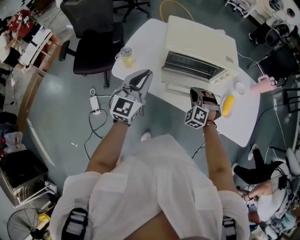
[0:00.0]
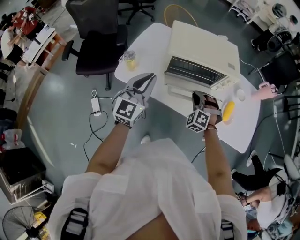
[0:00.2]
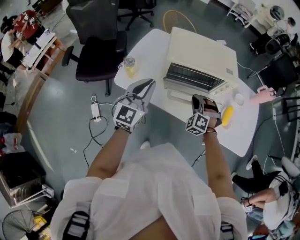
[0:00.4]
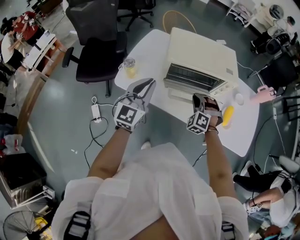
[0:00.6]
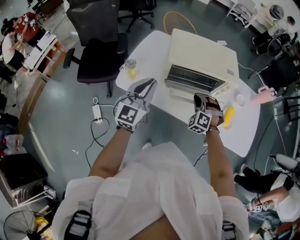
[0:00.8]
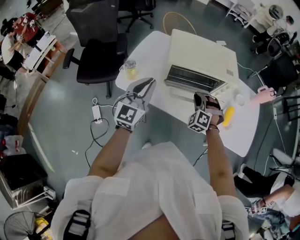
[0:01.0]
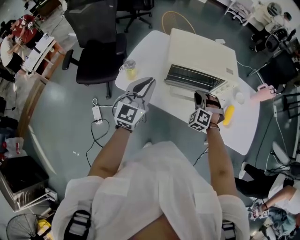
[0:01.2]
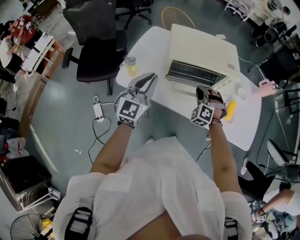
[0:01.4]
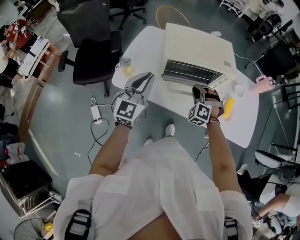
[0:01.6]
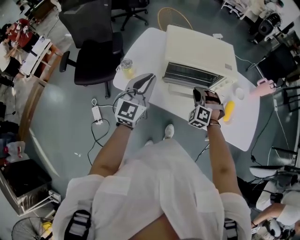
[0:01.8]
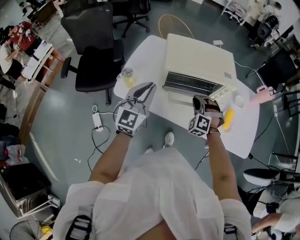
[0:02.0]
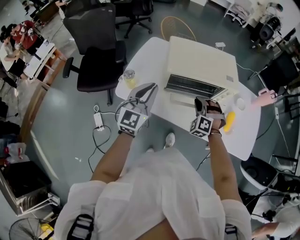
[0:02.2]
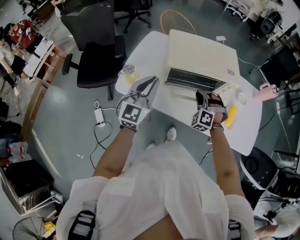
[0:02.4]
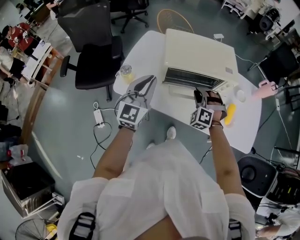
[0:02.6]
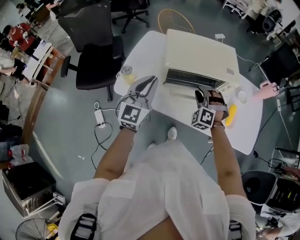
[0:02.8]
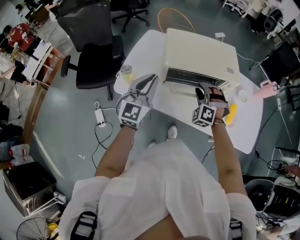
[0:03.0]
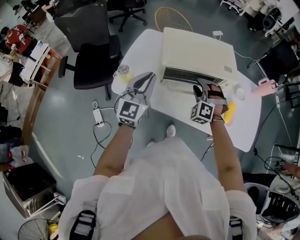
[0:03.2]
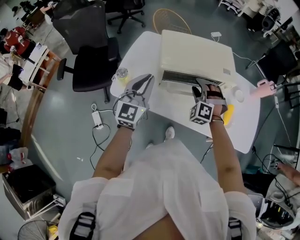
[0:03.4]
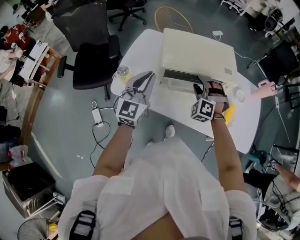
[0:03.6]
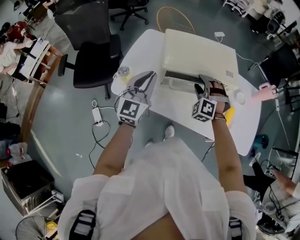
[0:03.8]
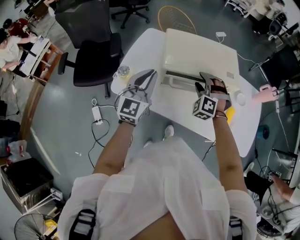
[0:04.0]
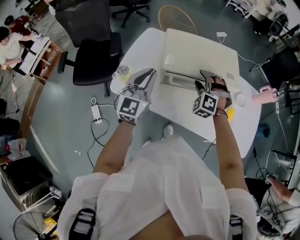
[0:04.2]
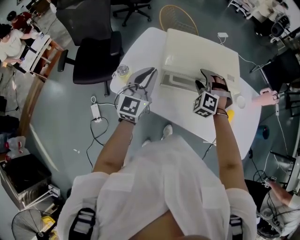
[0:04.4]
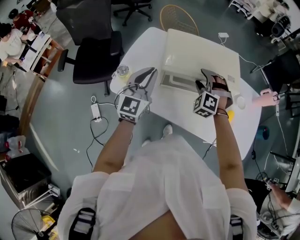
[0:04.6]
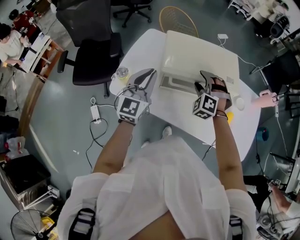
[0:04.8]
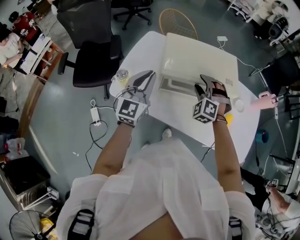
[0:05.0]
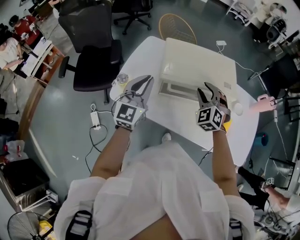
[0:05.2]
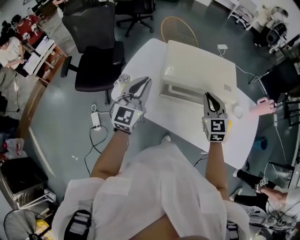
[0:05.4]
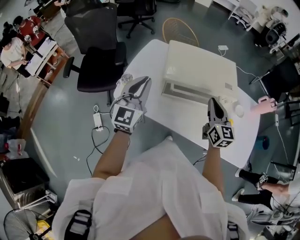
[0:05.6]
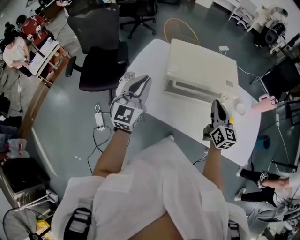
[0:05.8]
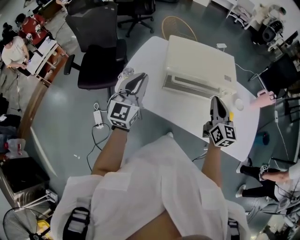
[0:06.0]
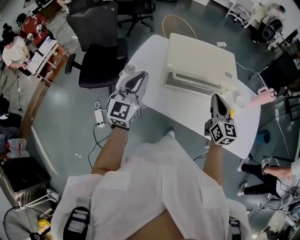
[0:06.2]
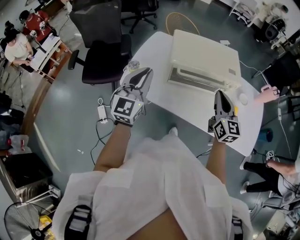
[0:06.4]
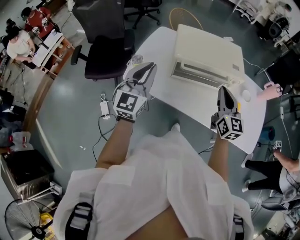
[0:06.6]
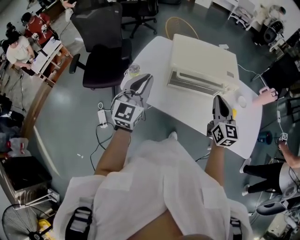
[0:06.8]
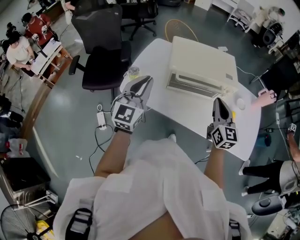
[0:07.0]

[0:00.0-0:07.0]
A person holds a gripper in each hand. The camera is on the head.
0:00.0 to 0:01.4: The right gripper changes place by about 5 cm.
0:01.4 to 0:02.8: There are only small adjustments of the grippers.
0:02.8 to 0:04.2: The grippers both shift forward by about 5 cm. The right gripper opens its fingers.
0:04.2 to 0:05.6: The right gripper goes approximately 10 cm upward, to the right and backward, rotates around the line of its fingers by roughly 80 degrees, clockwise from behind, and closes its fingers, while the left gripper shifts by approximately 5 cm.
0:05.6 to 0:07.0: Both grippers move backward, approximately 10 cm.

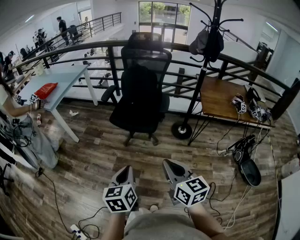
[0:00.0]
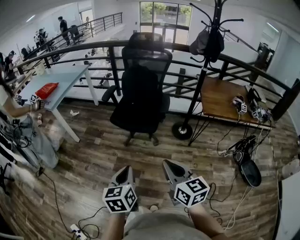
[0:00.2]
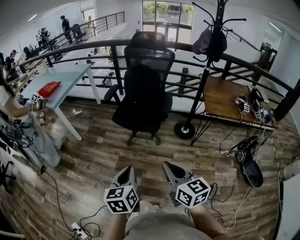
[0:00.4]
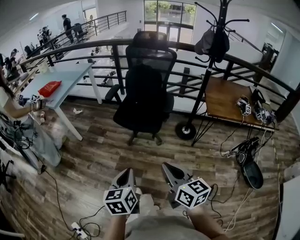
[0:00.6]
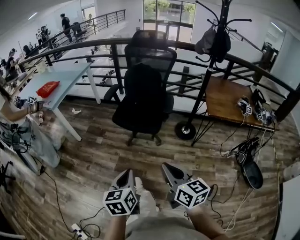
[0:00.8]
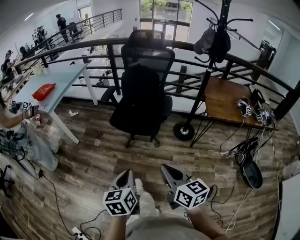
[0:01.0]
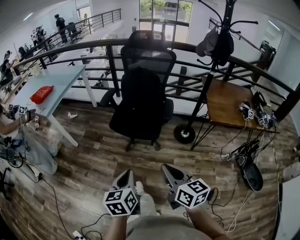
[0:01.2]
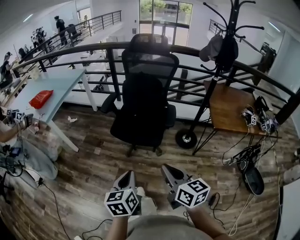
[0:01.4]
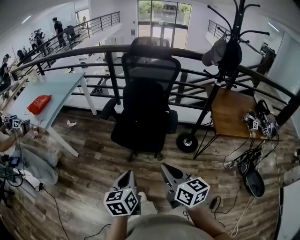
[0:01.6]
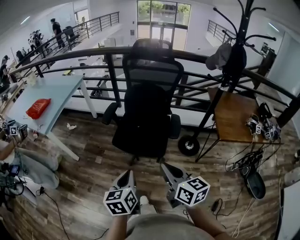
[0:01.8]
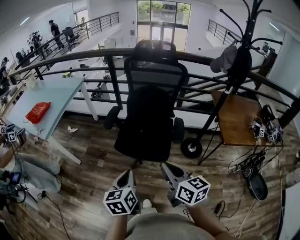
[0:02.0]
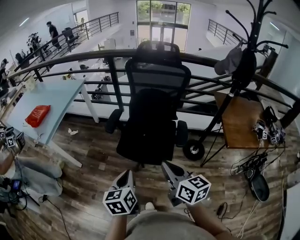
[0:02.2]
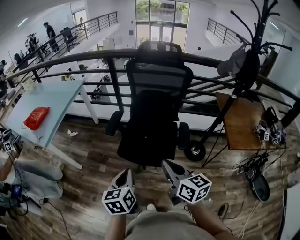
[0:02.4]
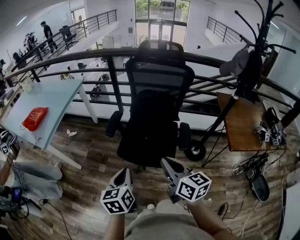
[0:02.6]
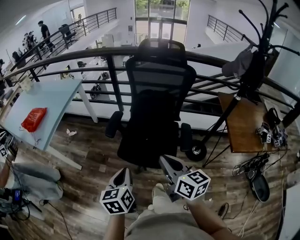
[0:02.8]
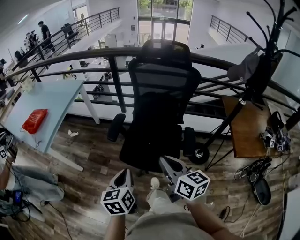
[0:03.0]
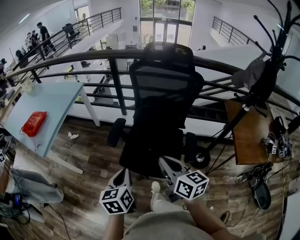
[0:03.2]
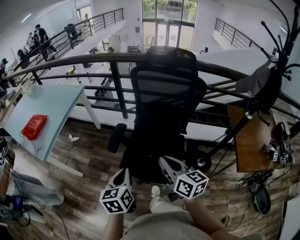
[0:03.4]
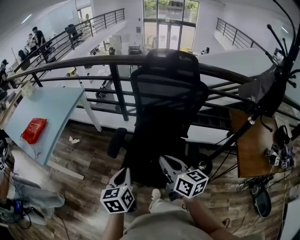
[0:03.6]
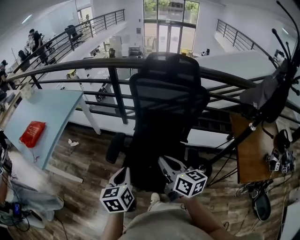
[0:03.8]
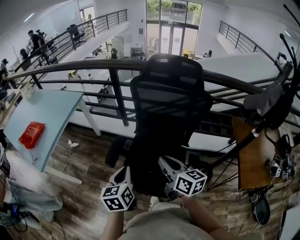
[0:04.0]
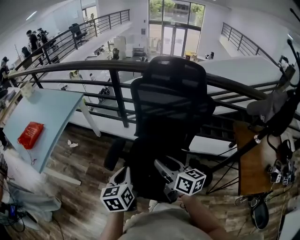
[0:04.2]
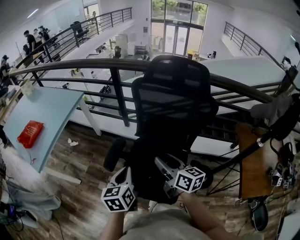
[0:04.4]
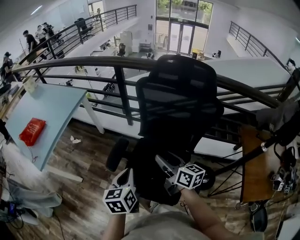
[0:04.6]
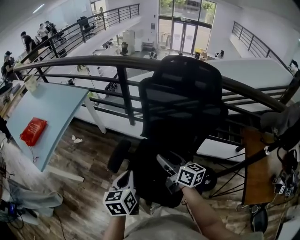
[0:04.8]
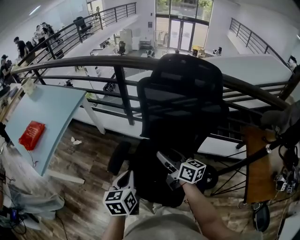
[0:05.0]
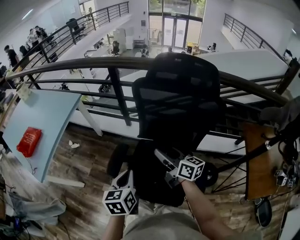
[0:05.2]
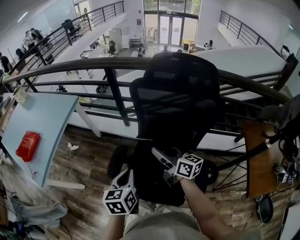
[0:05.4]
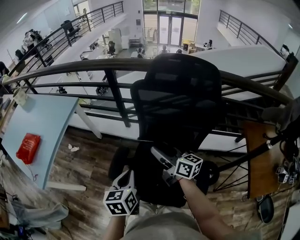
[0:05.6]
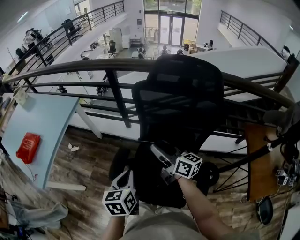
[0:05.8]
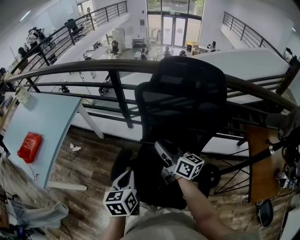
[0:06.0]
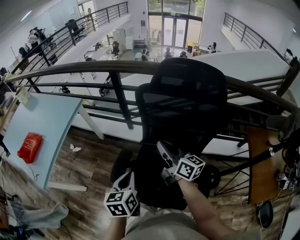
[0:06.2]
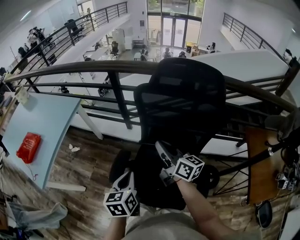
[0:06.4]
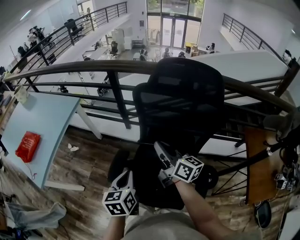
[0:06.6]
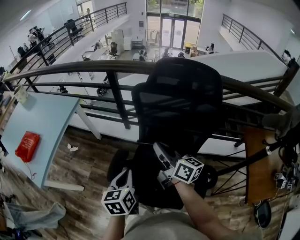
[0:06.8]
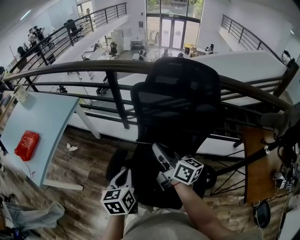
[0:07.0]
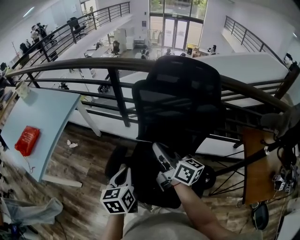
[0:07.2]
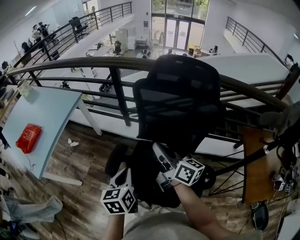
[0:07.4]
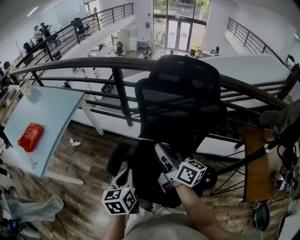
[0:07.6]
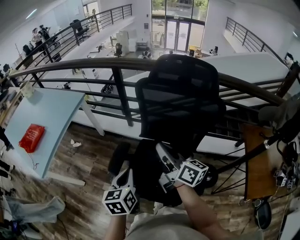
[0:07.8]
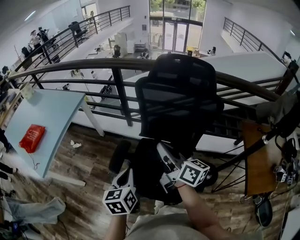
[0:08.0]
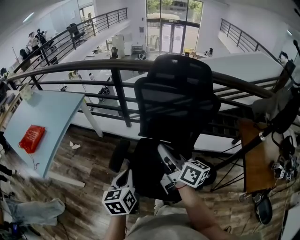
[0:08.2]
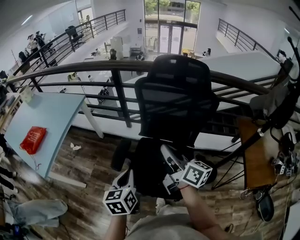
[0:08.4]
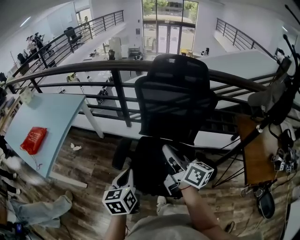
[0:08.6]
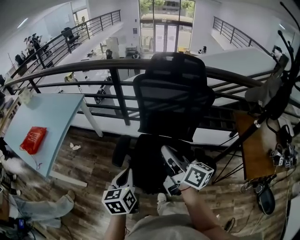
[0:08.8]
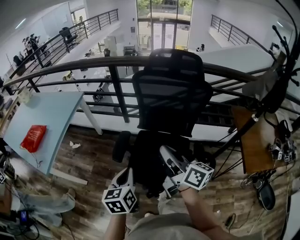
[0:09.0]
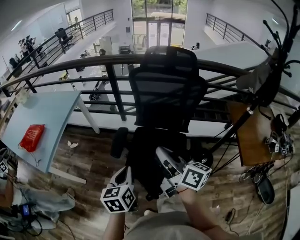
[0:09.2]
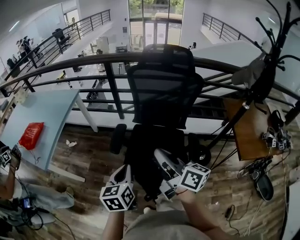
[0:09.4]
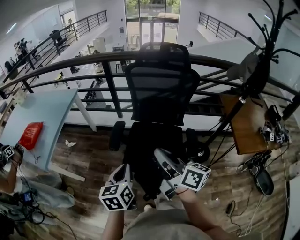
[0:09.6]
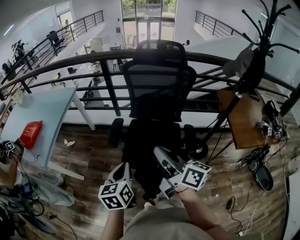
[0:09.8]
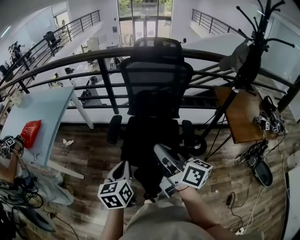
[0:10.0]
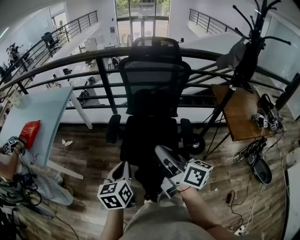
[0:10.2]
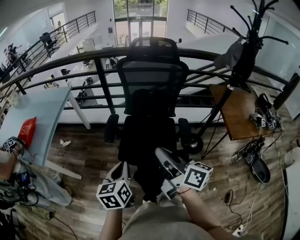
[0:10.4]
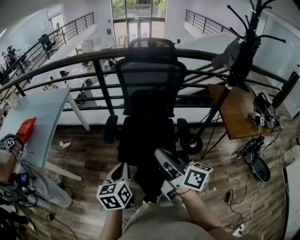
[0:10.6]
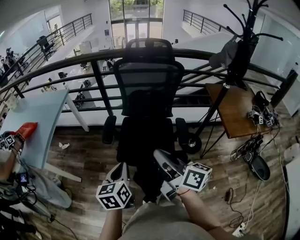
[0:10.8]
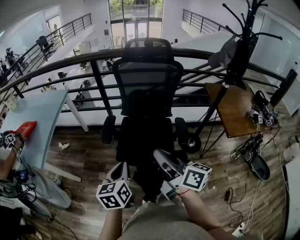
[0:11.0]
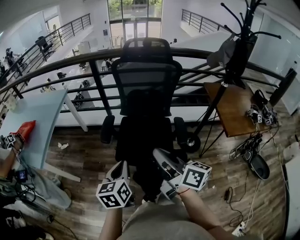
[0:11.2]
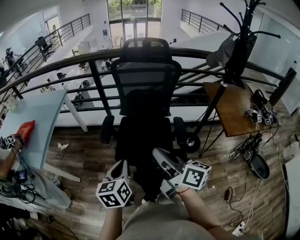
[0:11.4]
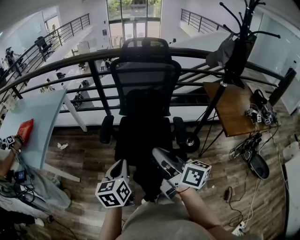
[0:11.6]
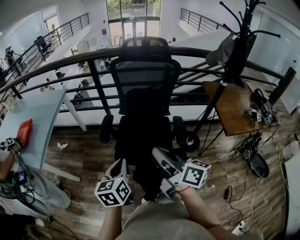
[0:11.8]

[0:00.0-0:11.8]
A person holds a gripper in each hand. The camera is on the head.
0:00.0 to 0:01.4: The two grippers go about 15 cm forward.
0:01.4 to 0:03.0: The grippers both shift forward by approximately 30 cm.
0:03.0 to 0:04.4: Both grippers move forward, approximately 25 cm. The right gripper opens its fingers.
0:04.4 to 0:06.0: The left gripper moves forward, about 10 cm, while the right gripper goes approximately 15 cm forward.
0:06.0 to 0:07.4: The right gripper travels backward by about 5 cm, and closes.
0:07.4 to 0:08.8: The right gripper moves backward, about 15 cm, while the left gripper shifts some 10 cm backward and to the left.
0:08.8 to 0:10.4: Both grippers travel together backward, roughly 20 cm.
0:10.4 to 0:11.8: There are only small adjustments of the grippers.

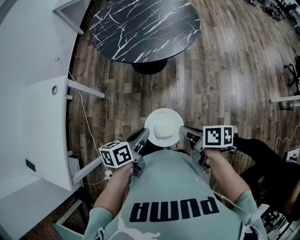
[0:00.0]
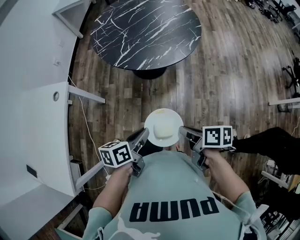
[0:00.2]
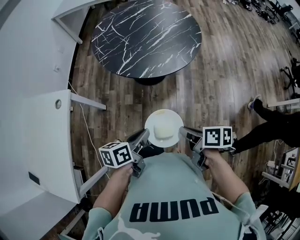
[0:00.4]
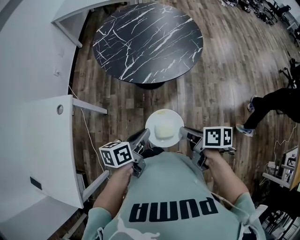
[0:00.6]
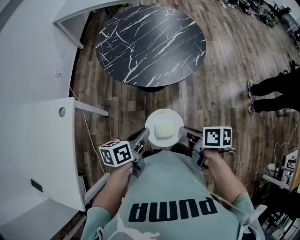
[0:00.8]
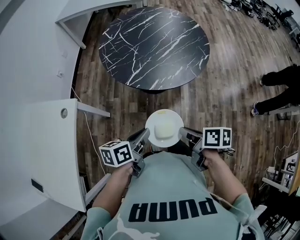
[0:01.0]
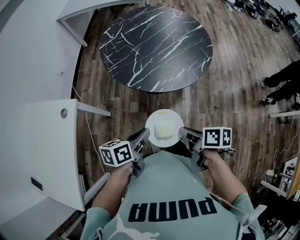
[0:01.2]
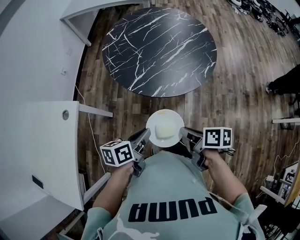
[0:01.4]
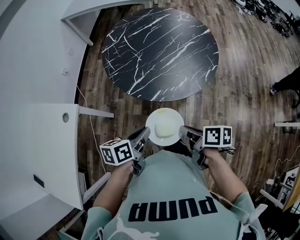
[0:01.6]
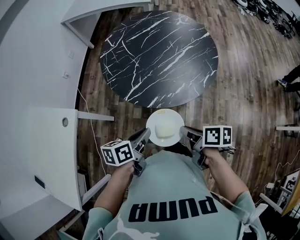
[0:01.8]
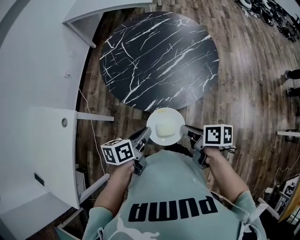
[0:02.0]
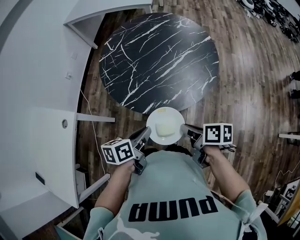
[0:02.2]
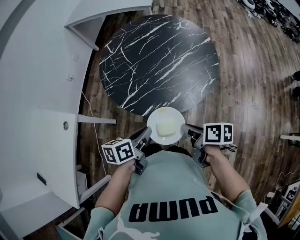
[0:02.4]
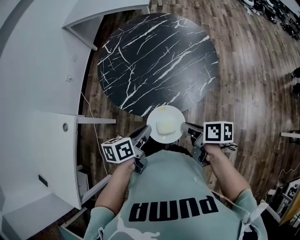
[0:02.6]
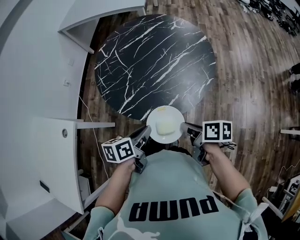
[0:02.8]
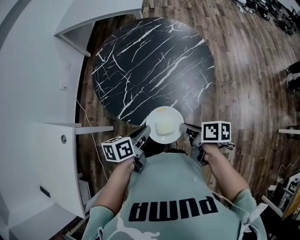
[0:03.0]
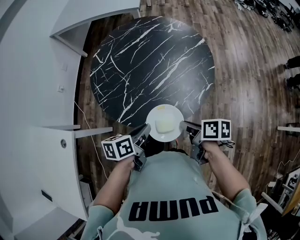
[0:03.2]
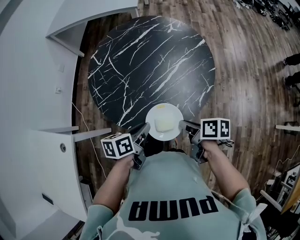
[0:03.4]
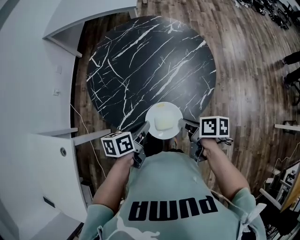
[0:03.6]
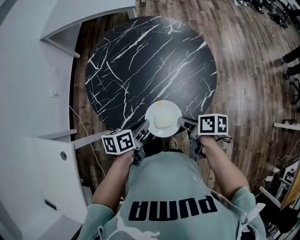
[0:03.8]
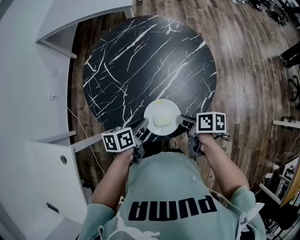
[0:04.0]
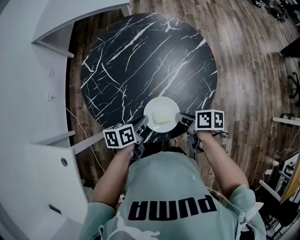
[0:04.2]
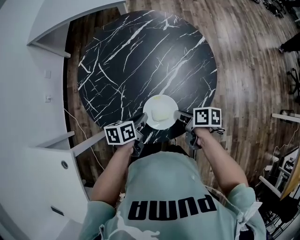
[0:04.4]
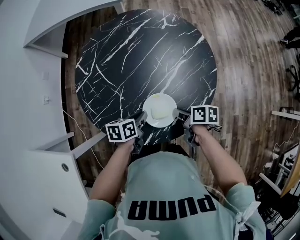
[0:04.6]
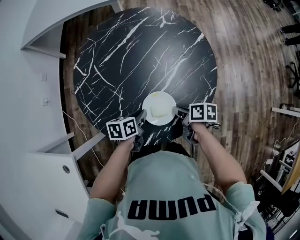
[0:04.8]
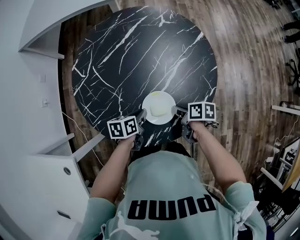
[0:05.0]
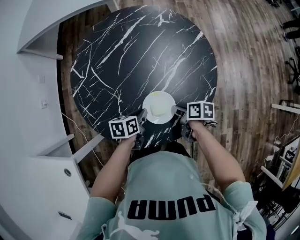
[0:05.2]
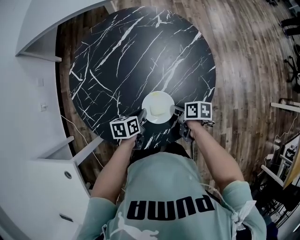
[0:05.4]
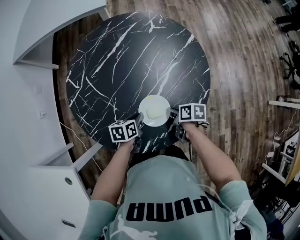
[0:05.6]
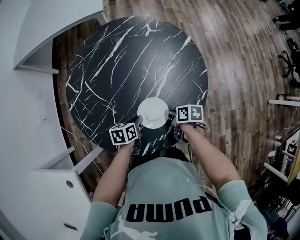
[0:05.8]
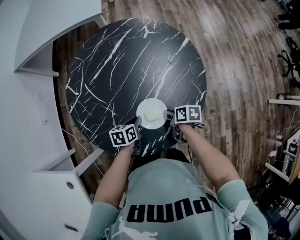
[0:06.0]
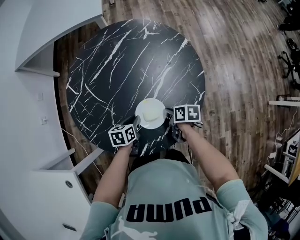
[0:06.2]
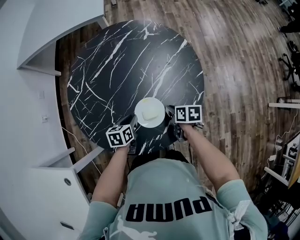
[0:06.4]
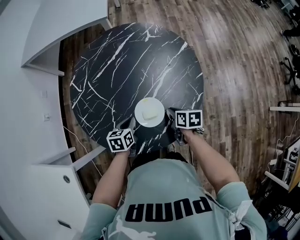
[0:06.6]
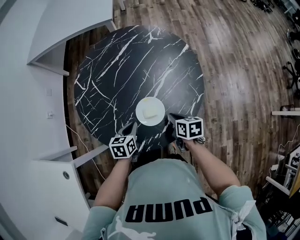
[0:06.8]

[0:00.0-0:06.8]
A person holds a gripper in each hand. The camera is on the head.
0:00.0 to 0:01.4: Both grippers move forward, roughly 20 cm.
0:01.4 to 0:02.8: Both grippers travel together forward and to the right, about 20 cm.
0:02.8 to 0:04.0: Both grippers move forward, roughly 15 cm.
0:04.0 to 0:05.4: The two grippers go roughly 15 cm downward and forward.
0:05.4 to 0:06.8: Both grippers travel together upward, some 5 cm. The right gripper turns by about 20 degrees. Meanwhile the left gripper changes its angle by about 20 degrees.
